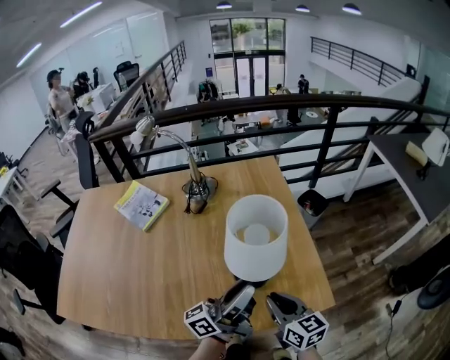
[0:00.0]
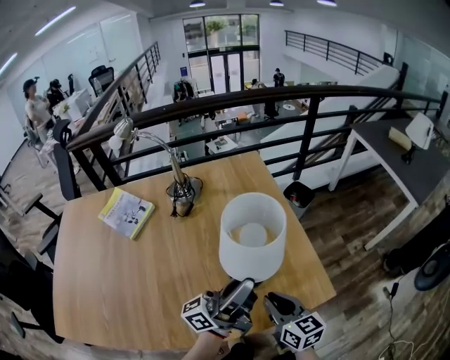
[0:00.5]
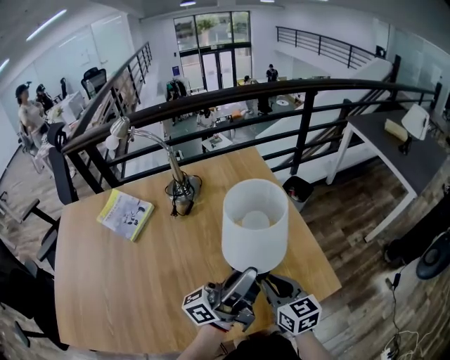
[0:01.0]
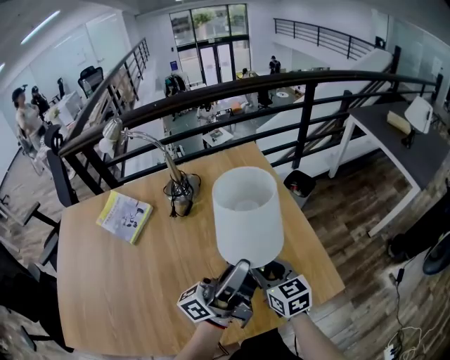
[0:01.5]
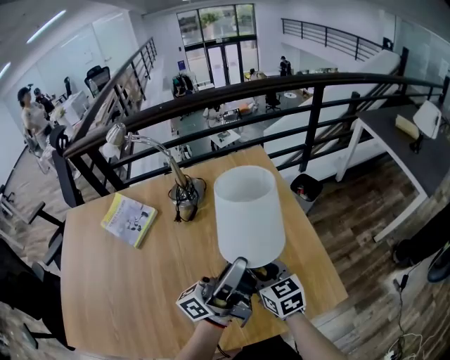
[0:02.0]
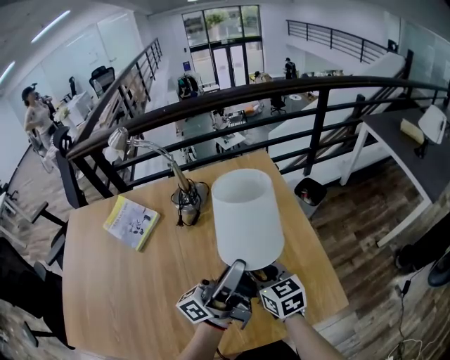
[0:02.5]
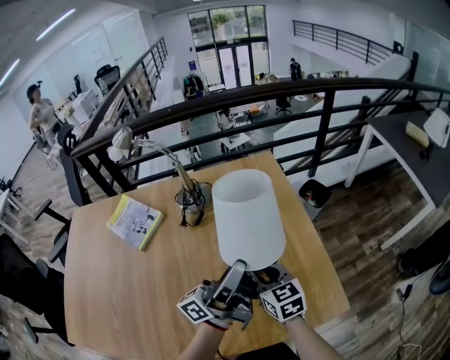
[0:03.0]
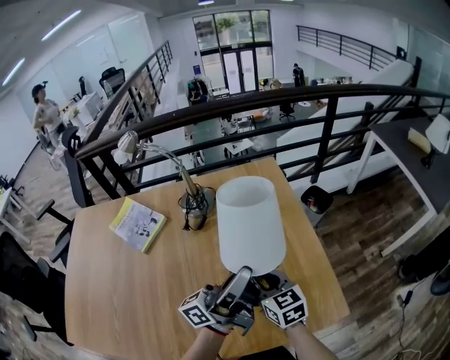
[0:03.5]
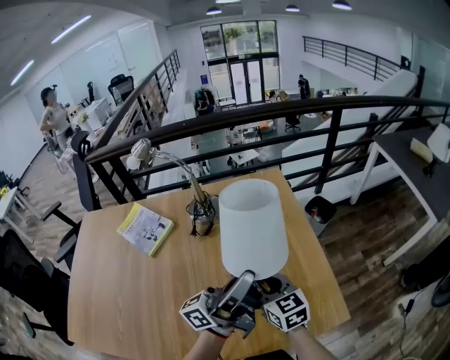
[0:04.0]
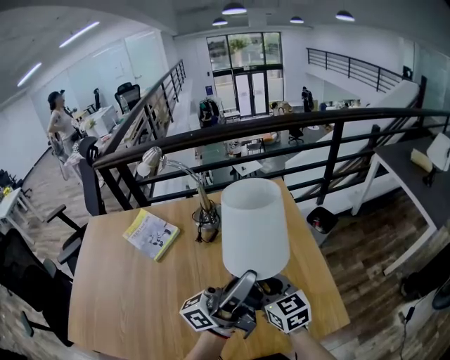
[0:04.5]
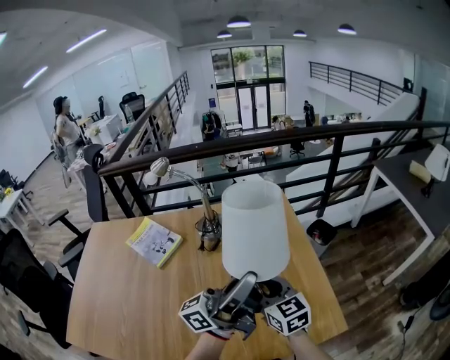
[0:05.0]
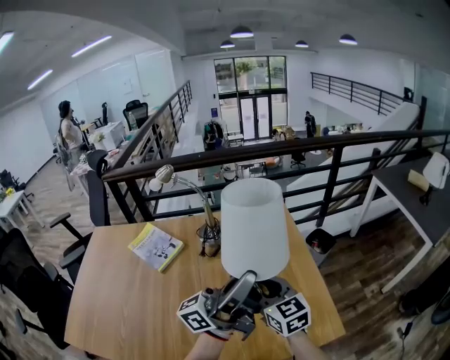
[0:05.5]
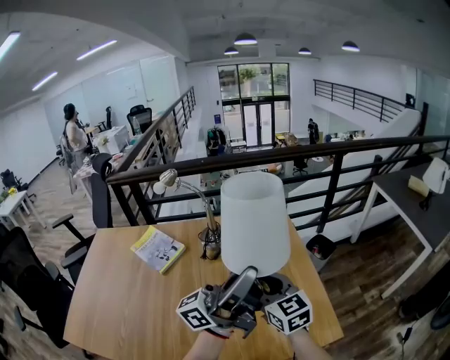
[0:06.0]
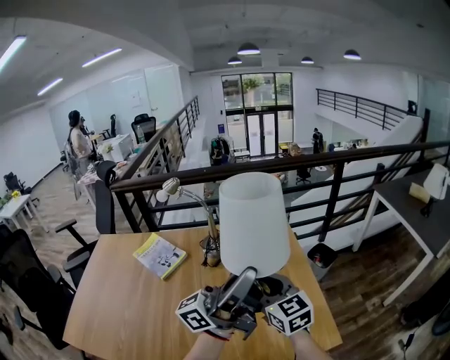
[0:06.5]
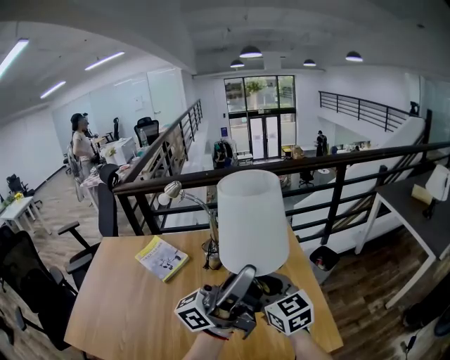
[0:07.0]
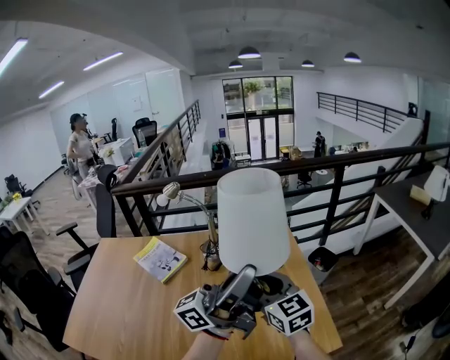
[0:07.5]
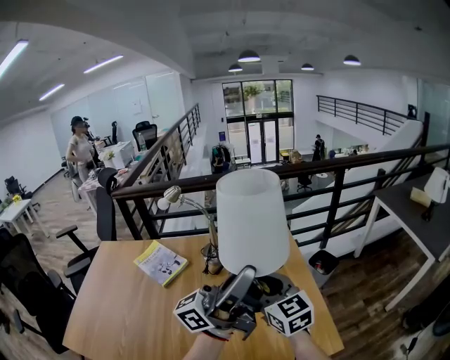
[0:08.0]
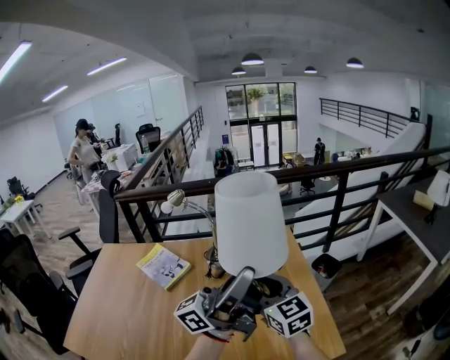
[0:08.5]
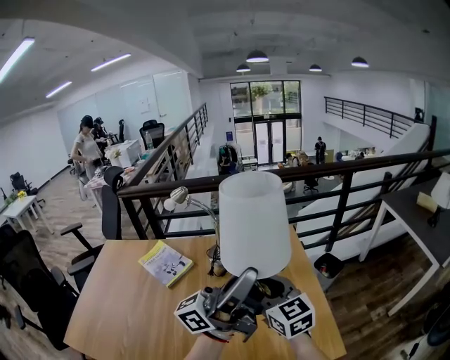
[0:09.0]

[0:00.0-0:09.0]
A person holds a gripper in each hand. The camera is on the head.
0.0 to 2.0 s: The left gripper shifts some 10 cm forward. The right gripper shifts approximately 15 cm forward and to the left.
2.0 to 4.5 s: The two grippers go approximately 10 cm upward.
4.5 to 7.0 s: The two grippers go about 10 cm upward.
7.0 to 9.0 s: The grippers stay close to where they were, moving slightly.

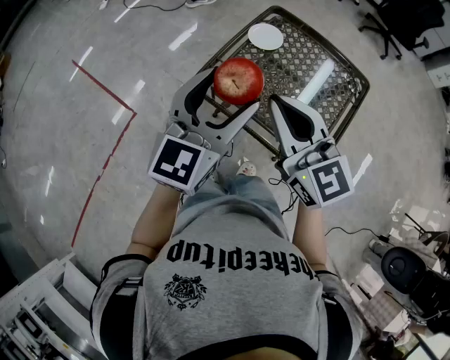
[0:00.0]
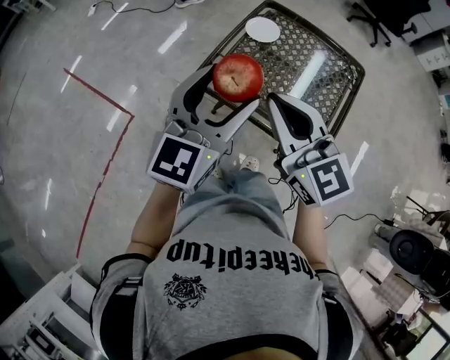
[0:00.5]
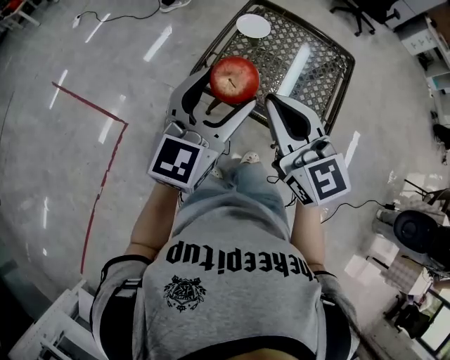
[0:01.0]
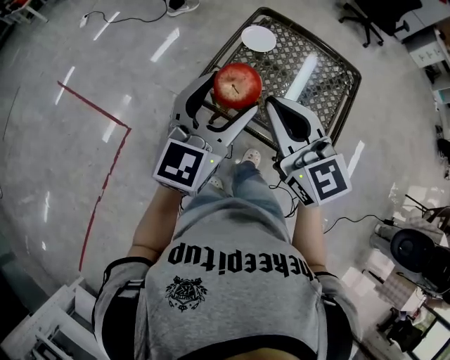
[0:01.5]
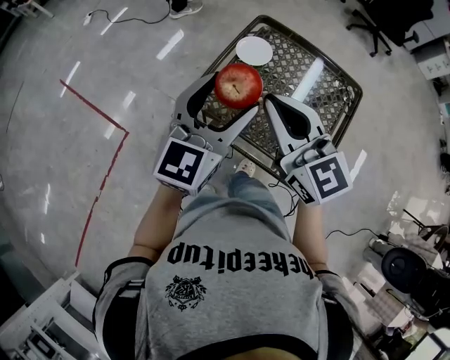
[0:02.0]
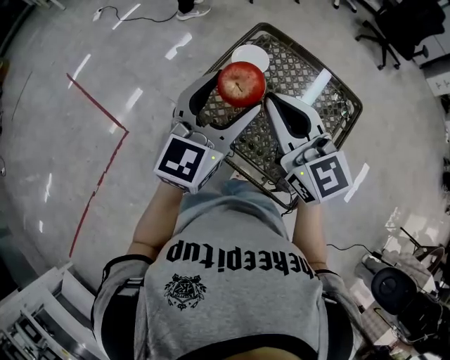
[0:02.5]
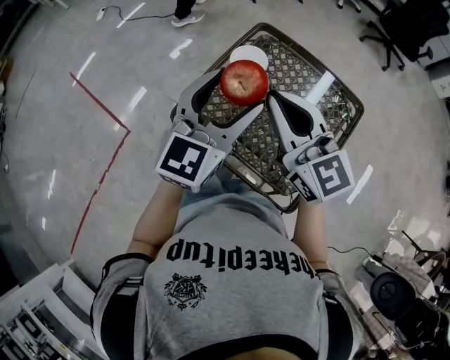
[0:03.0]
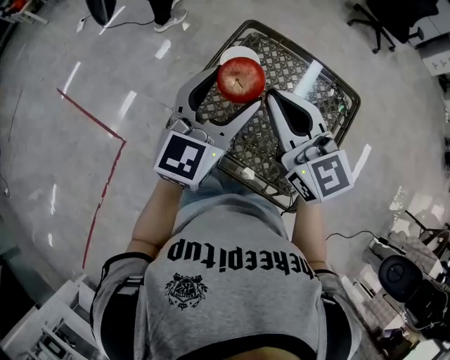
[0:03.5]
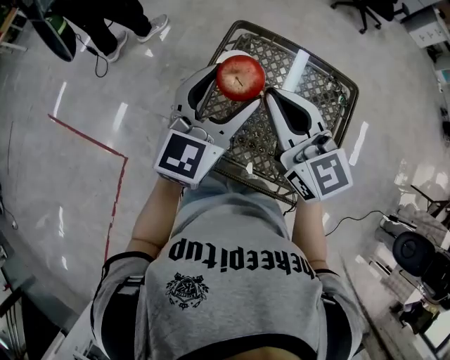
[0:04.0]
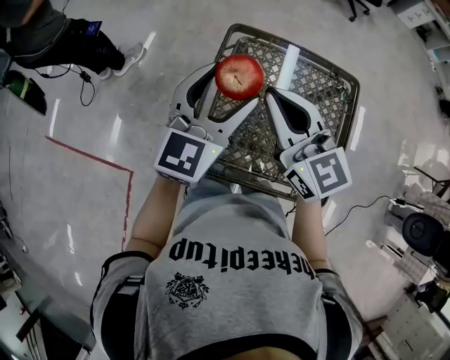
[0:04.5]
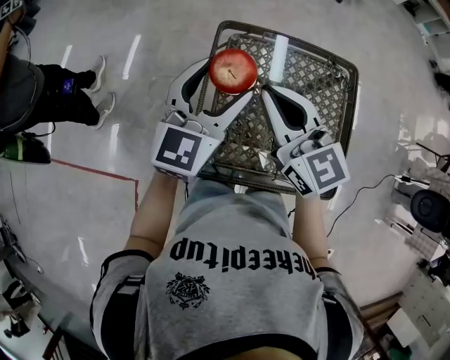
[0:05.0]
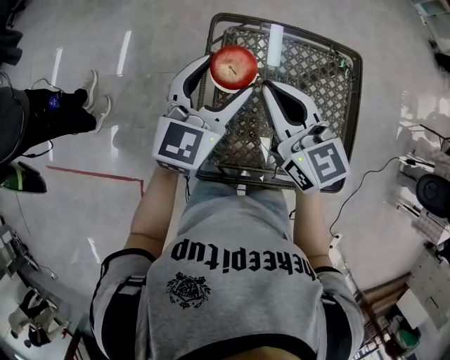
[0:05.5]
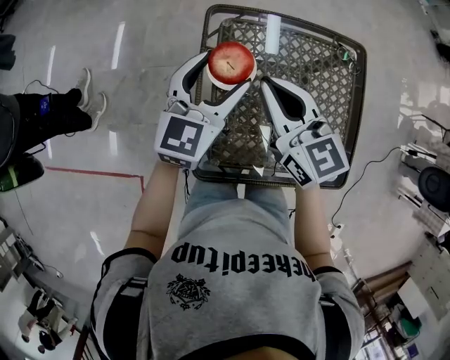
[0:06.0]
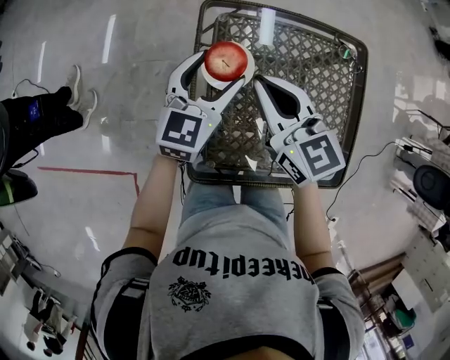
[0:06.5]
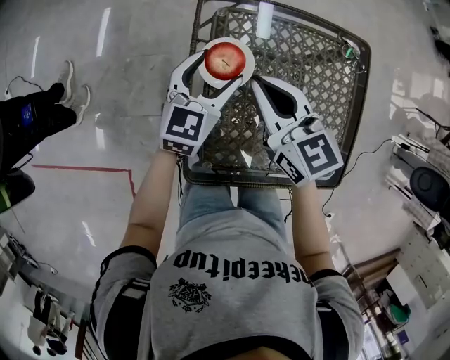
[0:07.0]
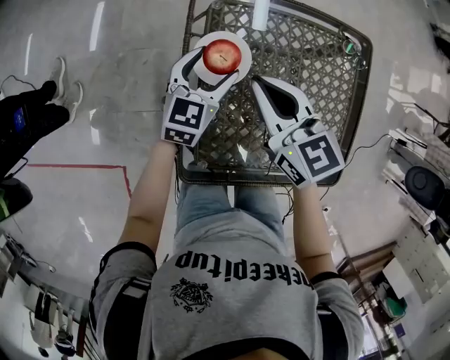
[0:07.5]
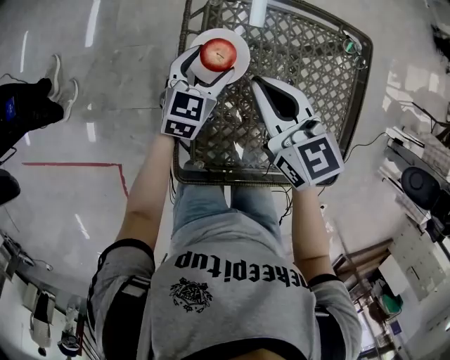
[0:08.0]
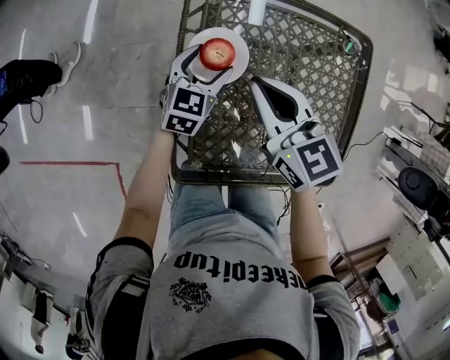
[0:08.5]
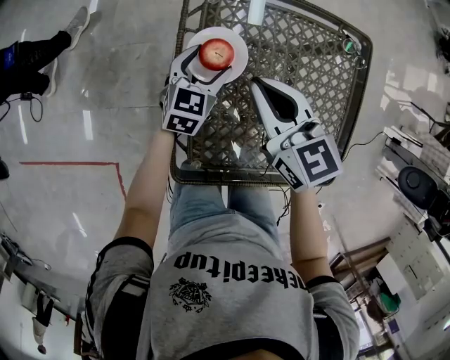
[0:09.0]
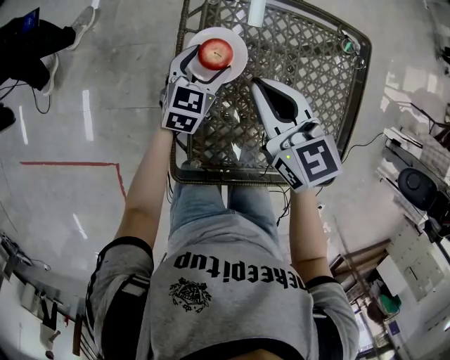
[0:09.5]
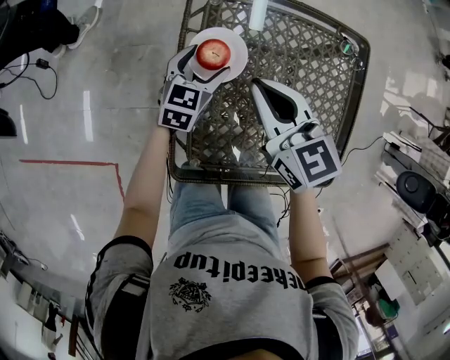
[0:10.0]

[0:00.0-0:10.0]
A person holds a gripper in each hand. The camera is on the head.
0.0 to 2.0 s: Both grippers move forward, about 10 cm.
2.0 to 4.0 s: The two grippers go some 15 cm forward.
4.0 to 6.0 s: The two grippers go some 15 cm forward and downward. The right gripper turns by some 20 degrees.
6.0 to 8.0 s: The right gripper travels downward by about 10 cm, while the left gripper moves downward, approximately 20 cm.
8.0 to 10.0 s: There are only small adjustments of the grippers.

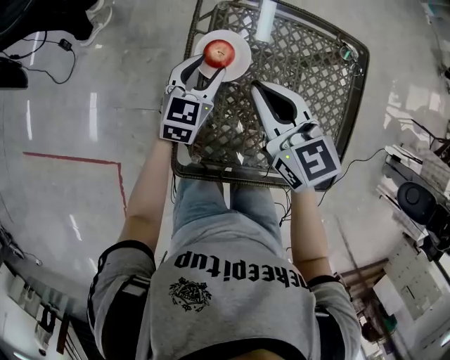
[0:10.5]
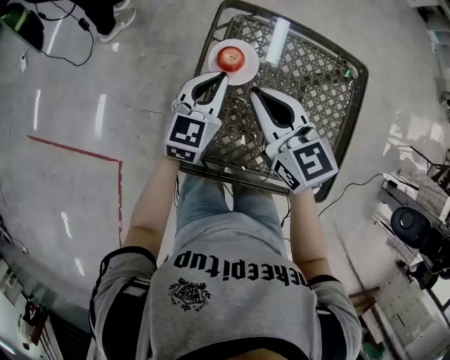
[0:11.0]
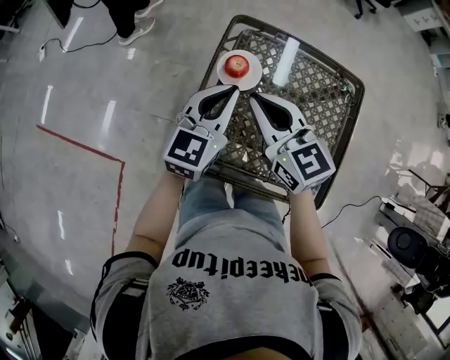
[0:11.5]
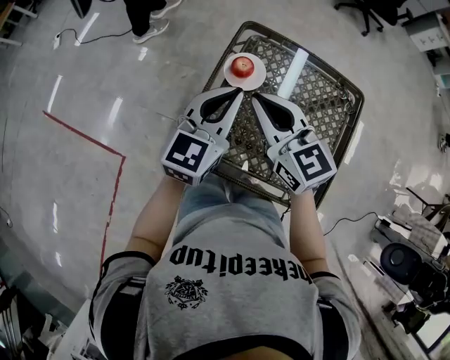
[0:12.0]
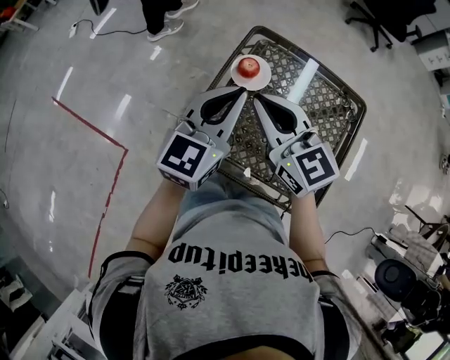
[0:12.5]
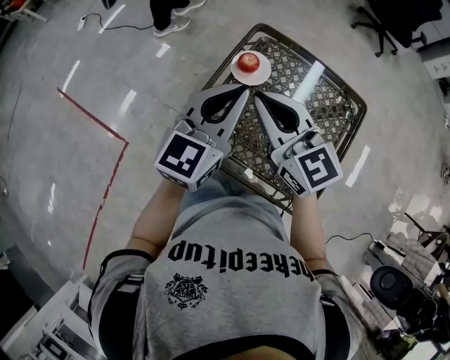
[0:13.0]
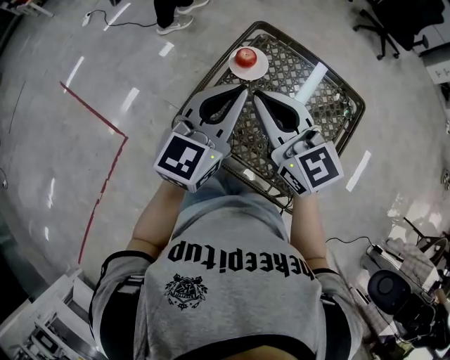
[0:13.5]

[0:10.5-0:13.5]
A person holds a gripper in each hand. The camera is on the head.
10.5 to 12.0 s: The left gripper moves upward and backward, approximately 25 cm, and closes; the right gripper travels upward and backward by some 15 cm, and turns by approximately 20 degrees.
12.0 to 13.5 s: The two grippers go some 10 cm backward and upward.

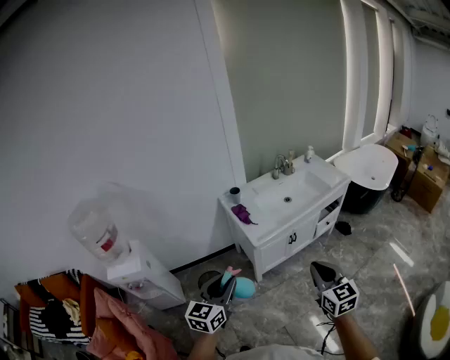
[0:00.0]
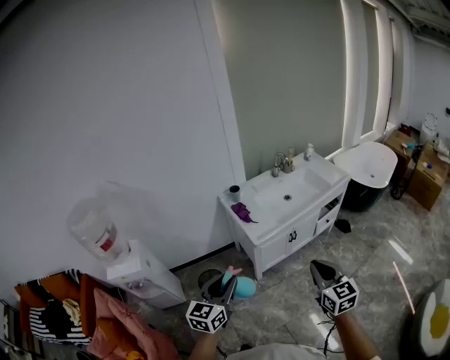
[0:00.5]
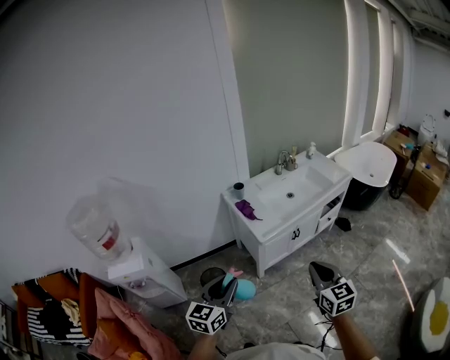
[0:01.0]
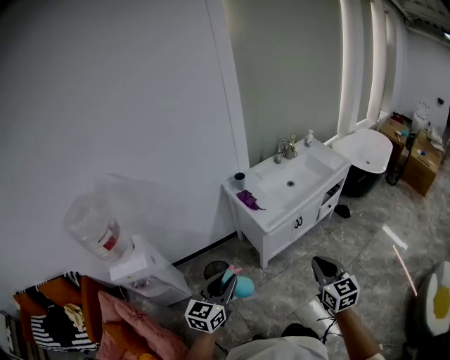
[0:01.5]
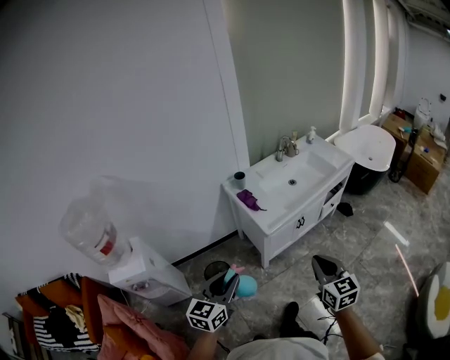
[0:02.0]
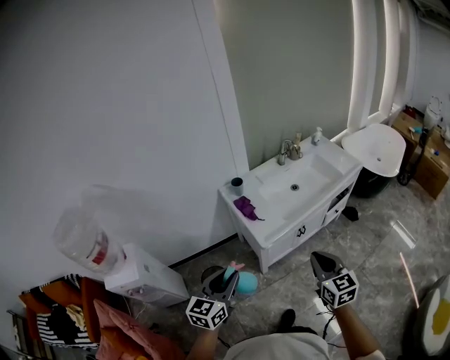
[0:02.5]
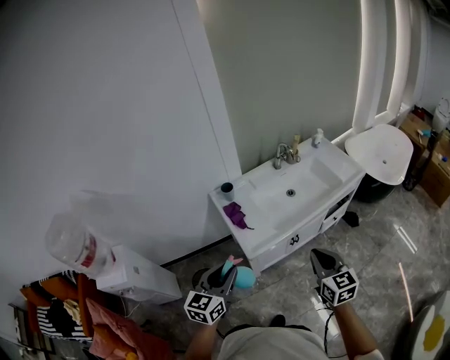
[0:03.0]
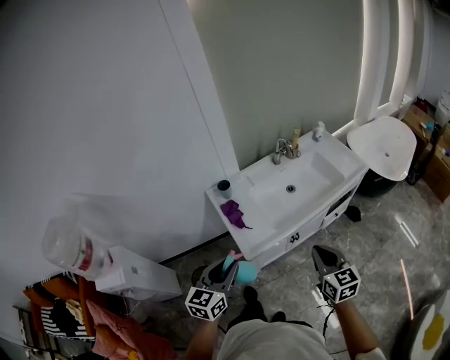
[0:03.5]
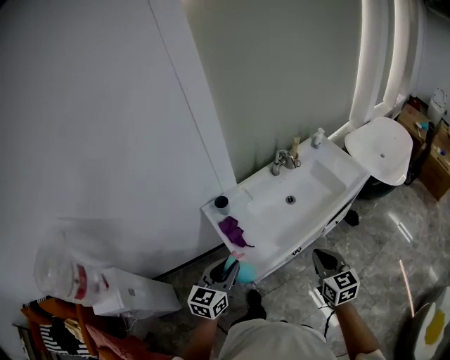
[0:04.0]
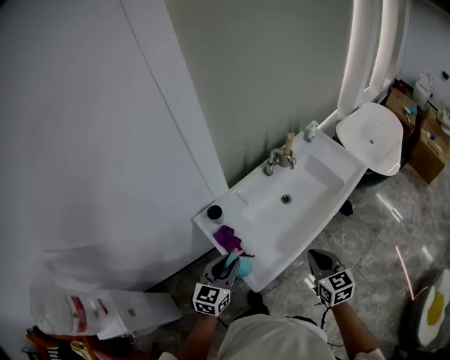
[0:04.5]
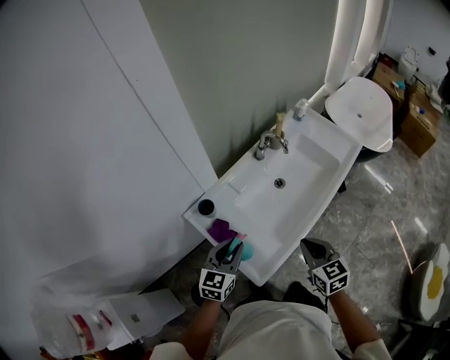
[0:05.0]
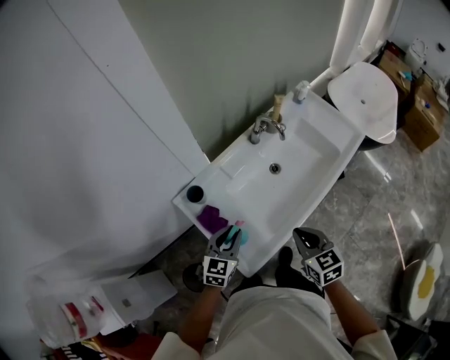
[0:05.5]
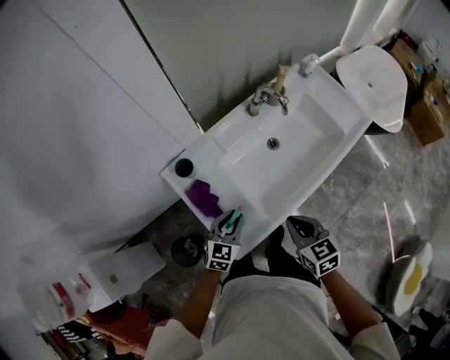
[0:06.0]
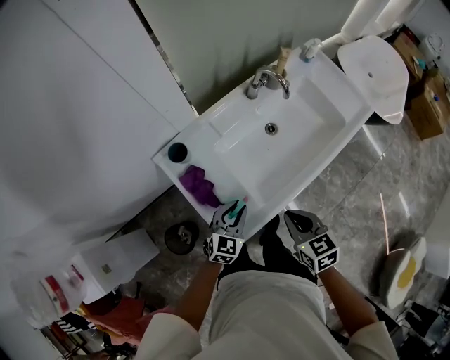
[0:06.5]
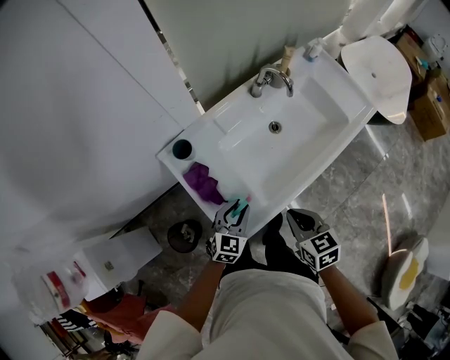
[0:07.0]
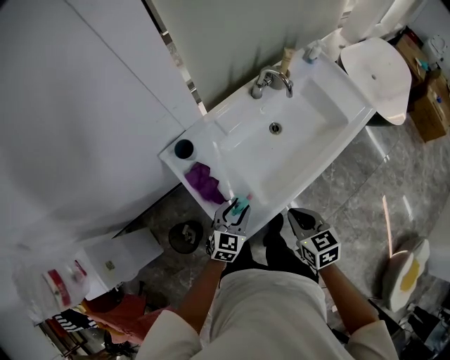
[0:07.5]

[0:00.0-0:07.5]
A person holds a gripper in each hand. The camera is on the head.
0.0 to 2.0 s: Both grippers travel together to the left, roughly 10 cm.
2.0 to 4.0 s: Both grippers move forward, about 35 cm.
4.0 to 5.5 s: The right gripper is displaced forward, downward and to the left by roughly 15 cm. Meanwhile the left gripper heads forward and downward, covering approximately 25 cm.
5.5 to 7.5 s: Both grippers travel together downward, approximately 10 cm.
